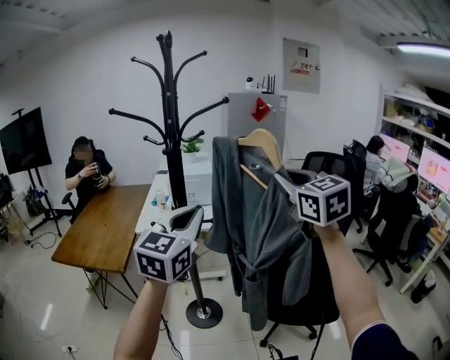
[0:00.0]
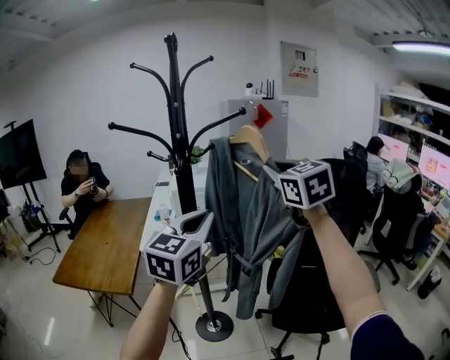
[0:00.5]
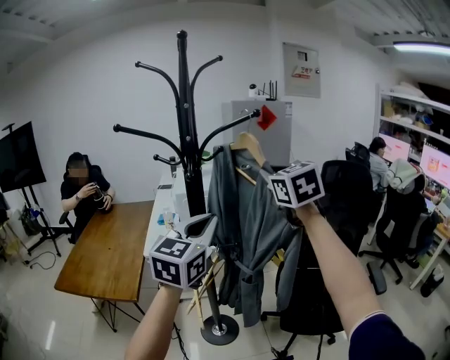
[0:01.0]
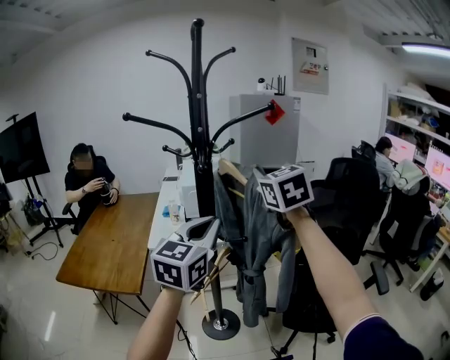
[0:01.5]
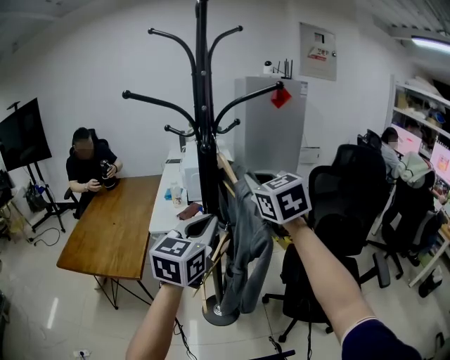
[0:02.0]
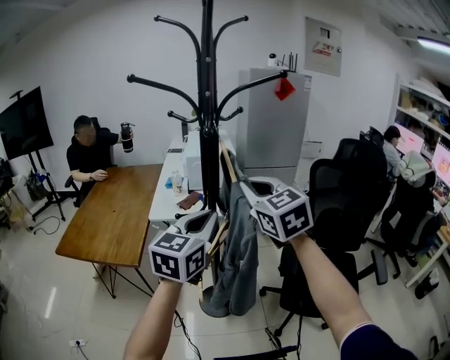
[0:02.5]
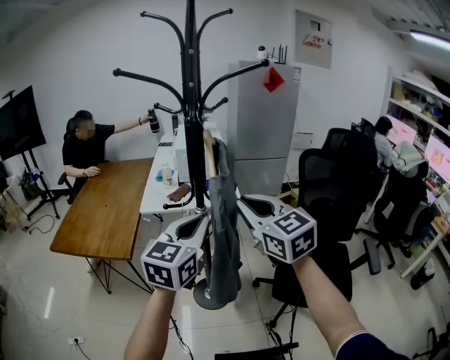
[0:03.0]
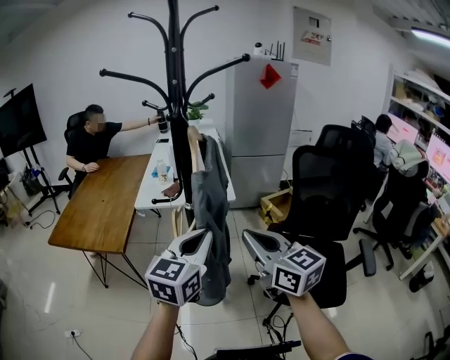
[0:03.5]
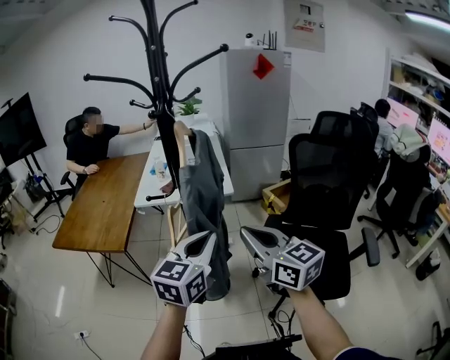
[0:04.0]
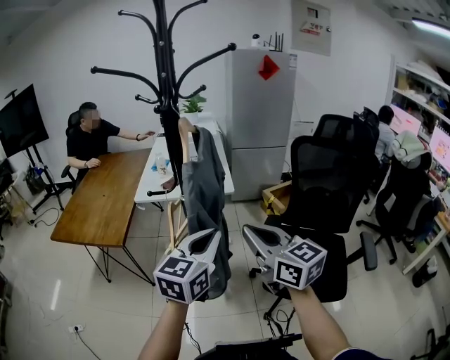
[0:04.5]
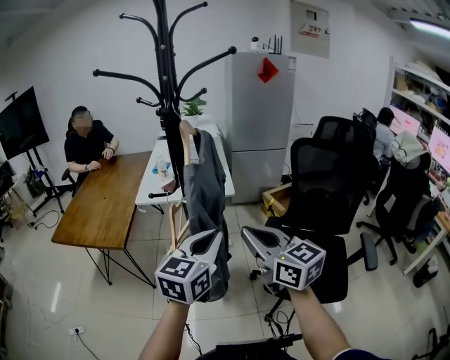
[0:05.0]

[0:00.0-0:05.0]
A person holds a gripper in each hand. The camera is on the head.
0:00.0 to 0:02.5: The right gripper heads to the left and downward, covering approximately 25 cm, while the left gripper travels to the left, downward and forward by approximately 15 cm.
0:02.5 to 0:05.0: The right gripper moves backward, downward and to the right, about 20 cm, and changes its angle by roughly 30 degrees, while the left gripper goes about 15 cm to the right, backward and downward.

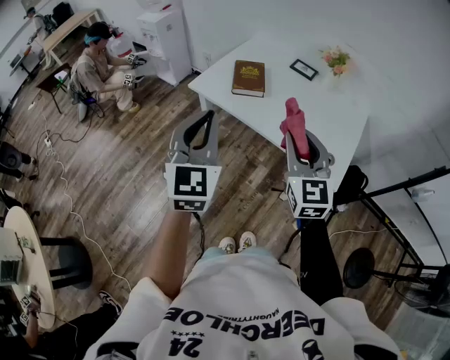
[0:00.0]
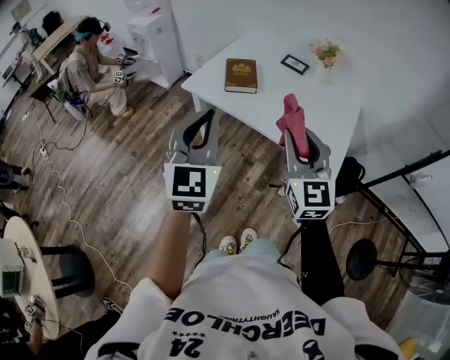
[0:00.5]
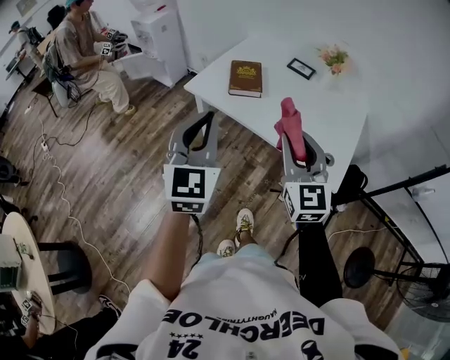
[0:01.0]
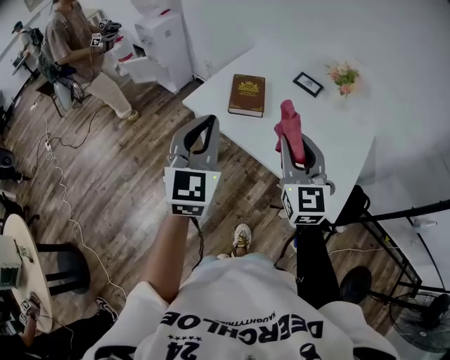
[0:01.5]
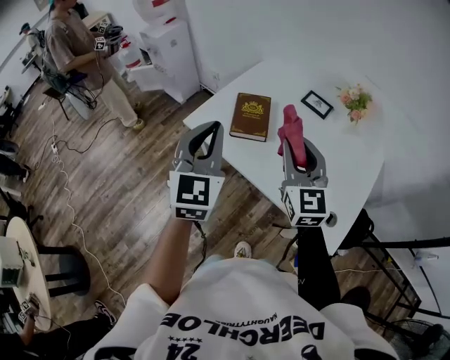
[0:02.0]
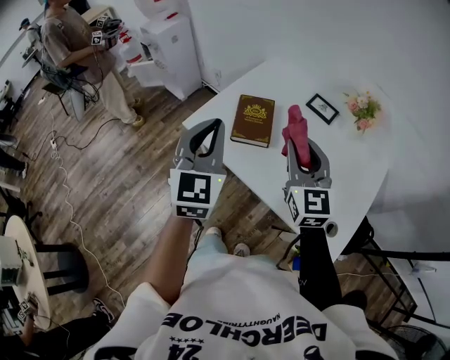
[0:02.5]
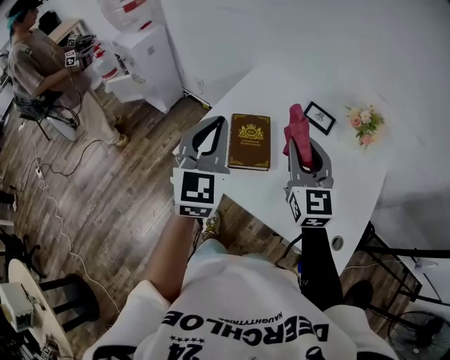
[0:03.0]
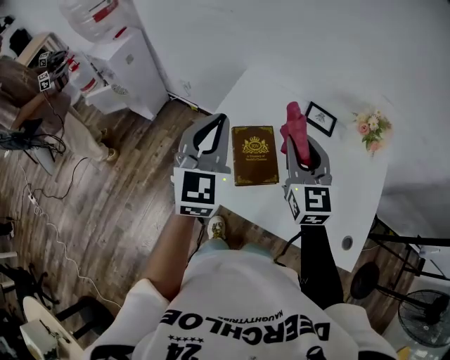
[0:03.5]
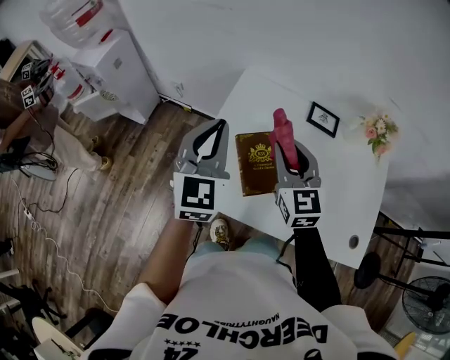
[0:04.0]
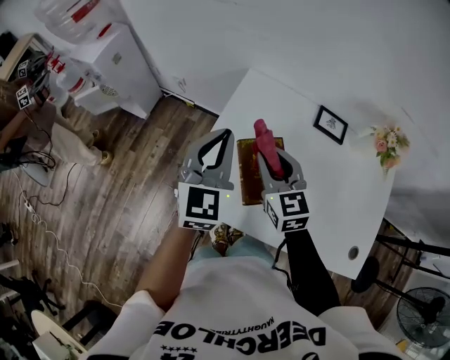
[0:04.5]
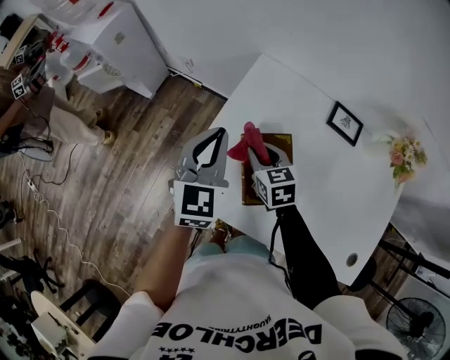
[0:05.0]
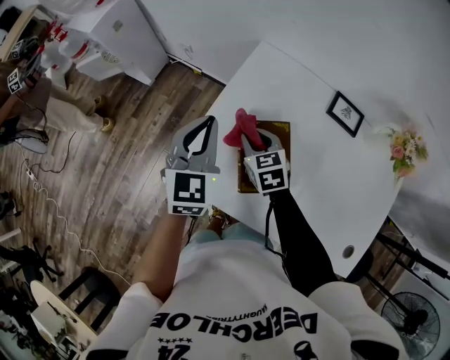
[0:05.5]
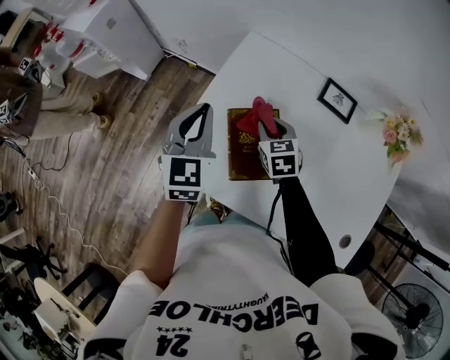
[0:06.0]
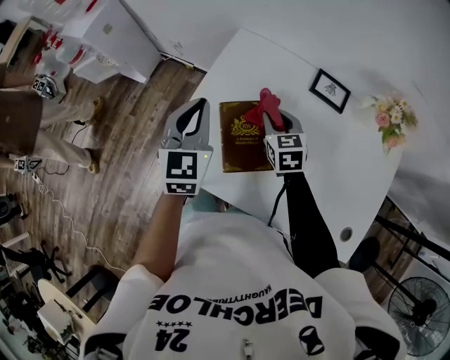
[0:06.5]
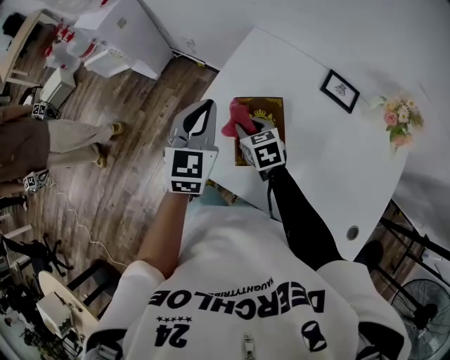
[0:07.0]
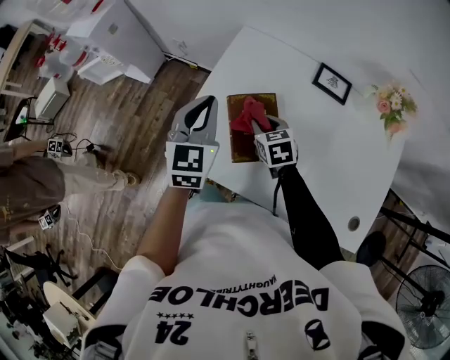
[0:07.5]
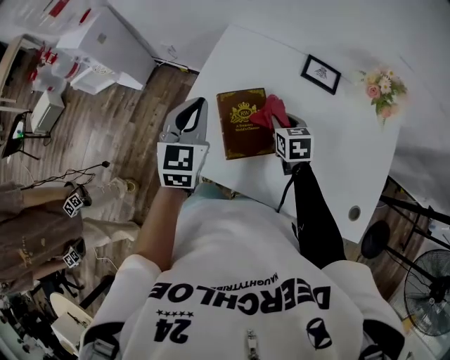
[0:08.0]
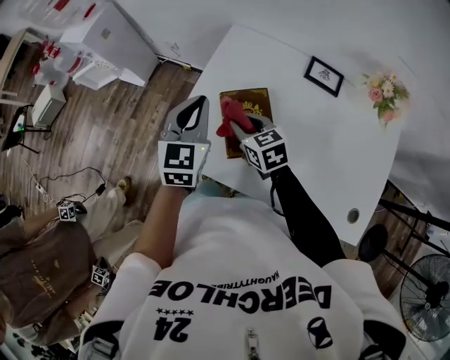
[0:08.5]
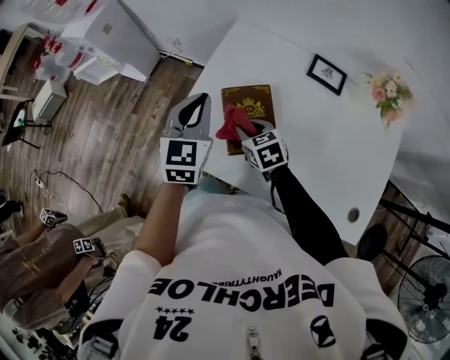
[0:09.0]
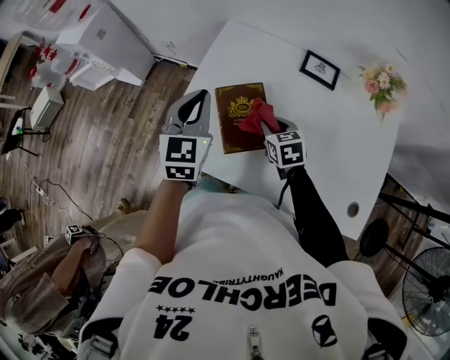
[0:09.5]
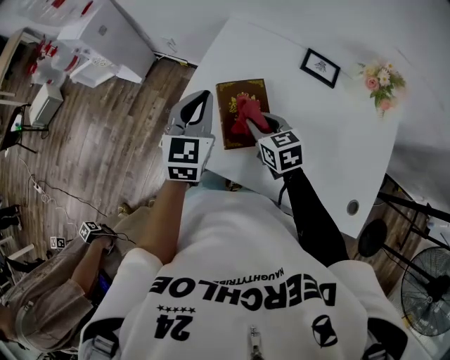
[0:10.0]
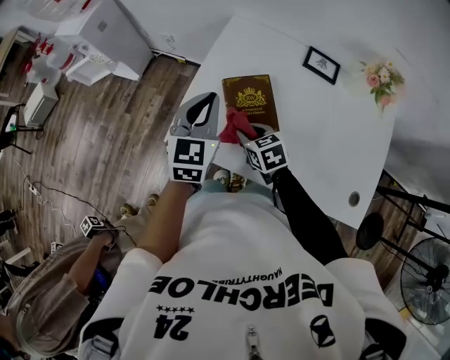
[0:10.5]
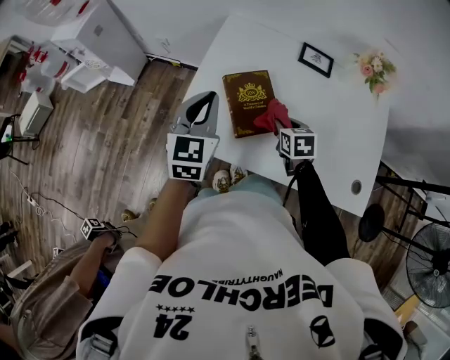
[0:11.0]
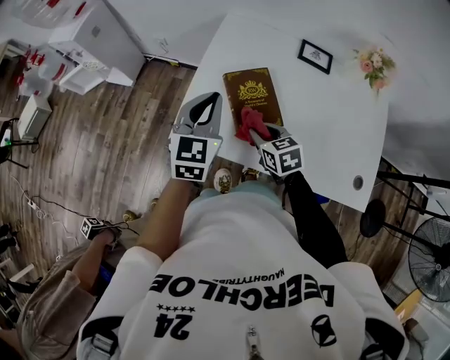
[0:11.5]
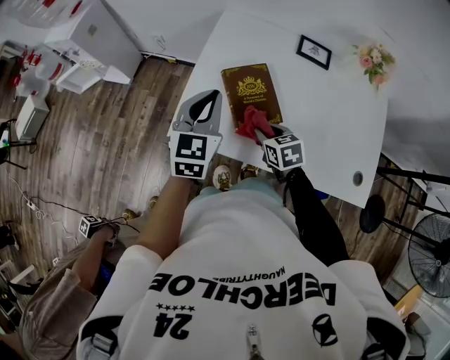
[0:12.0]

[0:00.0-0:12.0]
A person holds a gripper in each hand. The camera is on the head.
0:00.0 to 0:02.0: The grippers both shift forward by some 20 cm.
0:02.0 to 0:04.0: The left gripper is displaced forward by approximately 35 cm, and changes its angle by some 20 degrees. The right gripper travels forward and to the left by approximately 30 cm.
0:04.0 to 0:06.0: The right gripper shifts some 20 cm downward, and points its fingers approximately 30 degrees further downward, while the left gripper shifts approximately 10 cm downward.
0:06.0 to 0:08.0: The right gripper goes left and right, roughly 15 cm each way, reversing 2 times.
0:08.0 to 0:10.0: The right gripper moves left and right over approximately 15 cm, changing direction 2 times.
0:10.0 to 0:12.0: The right gripper goes left and right, roughly 10 cm each way, reversing 2 times, while the left gripper moves approximately 5 cm.

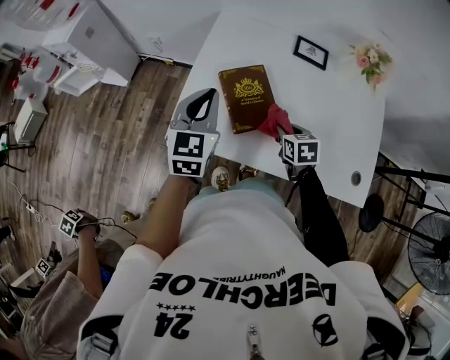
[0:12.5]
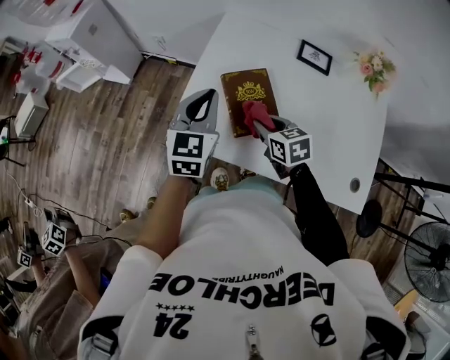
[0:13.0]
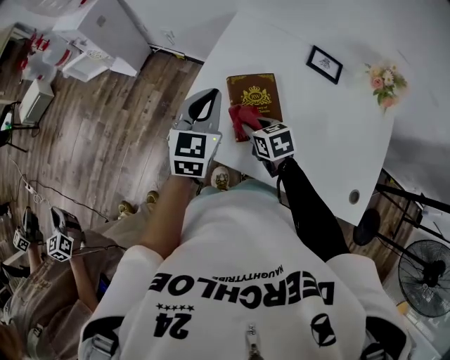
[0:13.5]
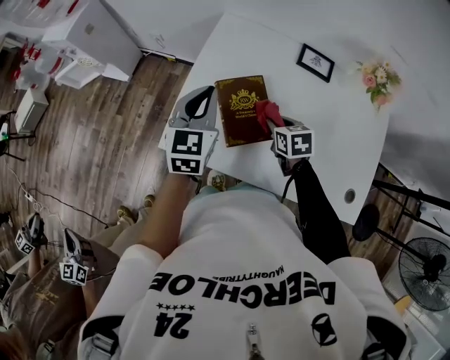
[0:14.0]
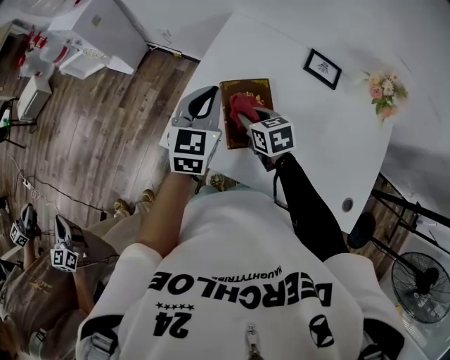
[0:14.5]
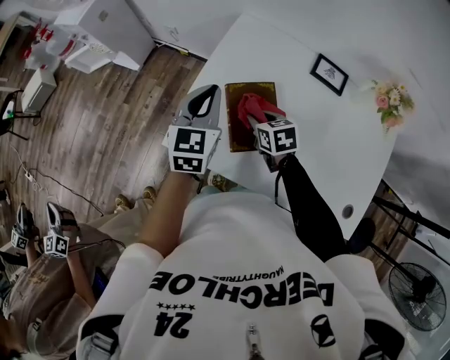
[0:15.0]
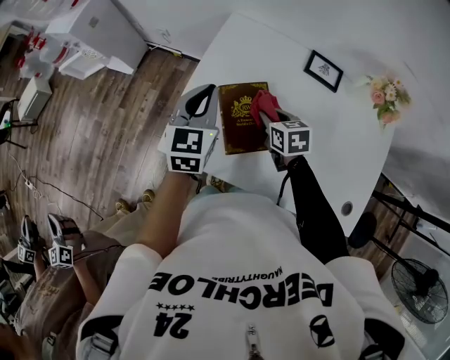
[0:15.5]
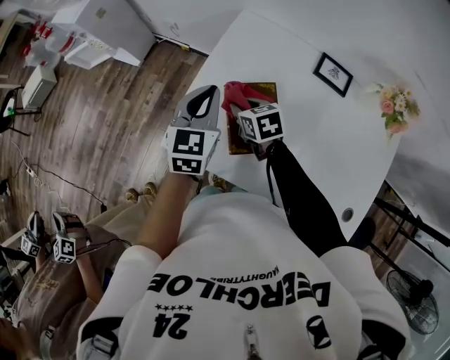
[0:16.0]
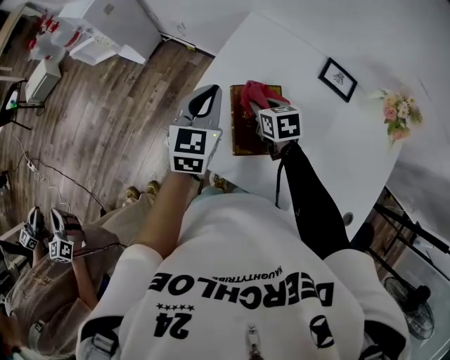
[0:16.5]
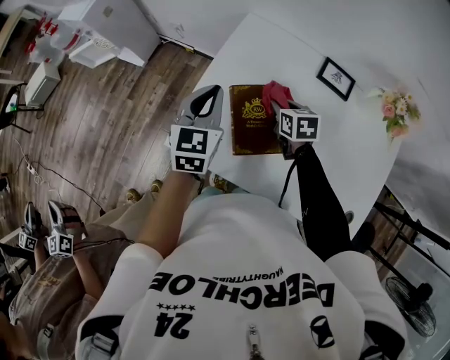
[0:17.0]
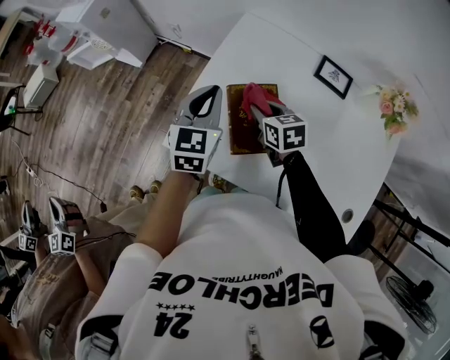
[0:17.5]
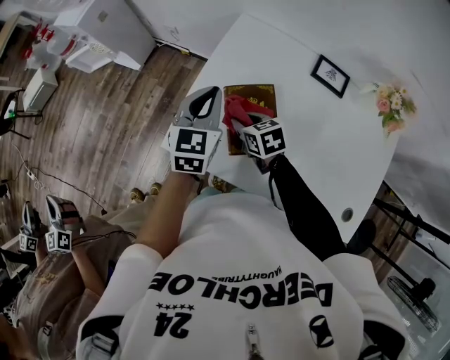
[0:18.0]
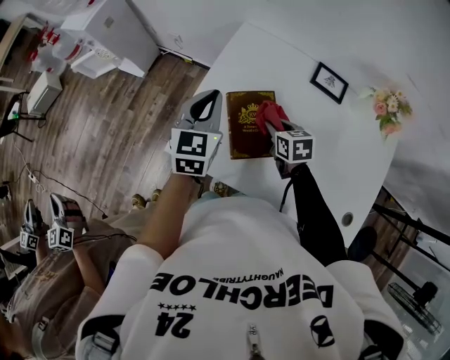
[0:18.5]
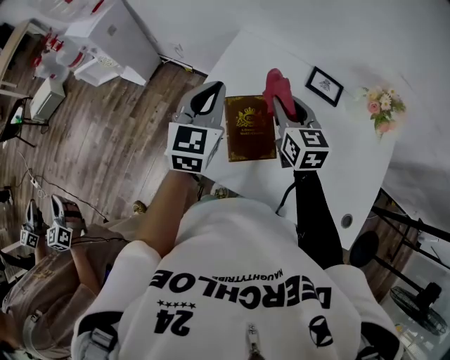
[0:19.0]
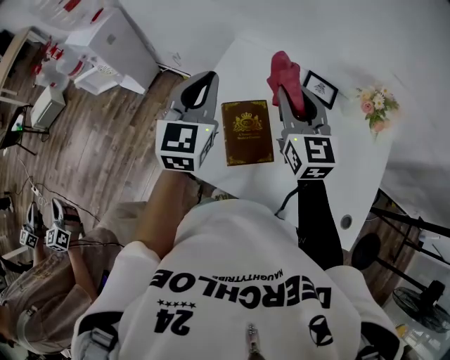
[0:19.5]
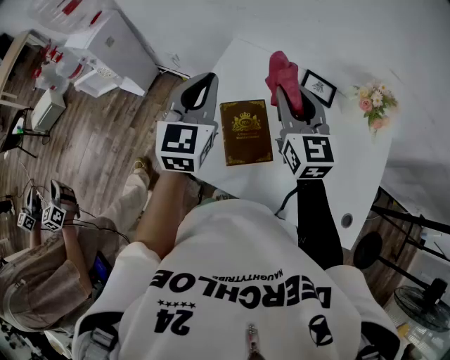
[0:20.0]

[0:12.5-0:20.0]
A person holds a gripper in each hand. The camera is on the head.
0:12.5 to 0:14.5: The left gripper is displaced forward by approximately 5 cm. Meanwhile the right gripper goes left and right, some 15 cm each way, reversing 2 times, and swivels some 20 degrees.
0:14.5 to 0:16.5: The right gripper swings left and right, some 10 cm each way, with 2 reversals.
0:16.5 to 0:18.0: The right gripper heads backward, covering some 5 cm.
0:18.0 to 0:20.0: The right gripper heads upward and to the right, covering about 30 cm, and tips its fingers upward by approximately 40 degrees. Meanwhile the left gripper heads upward, covering some 15 cm.

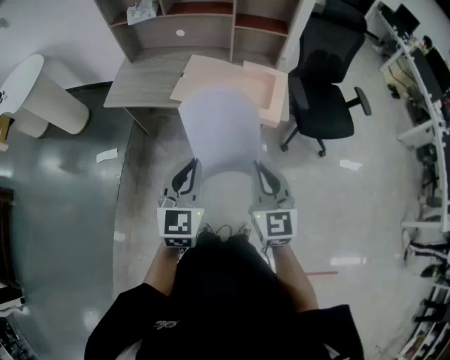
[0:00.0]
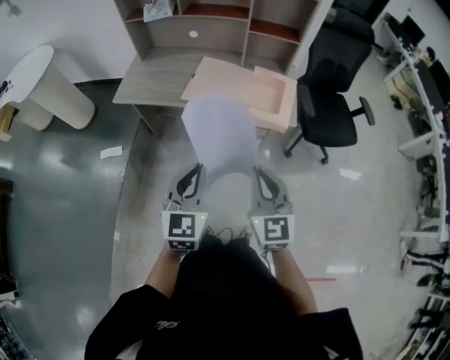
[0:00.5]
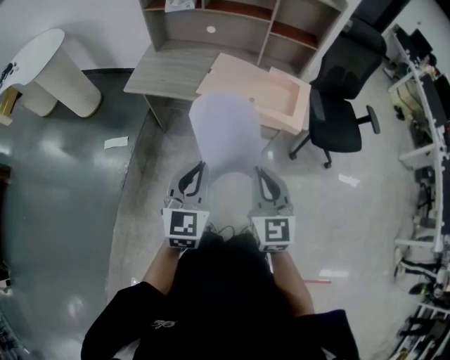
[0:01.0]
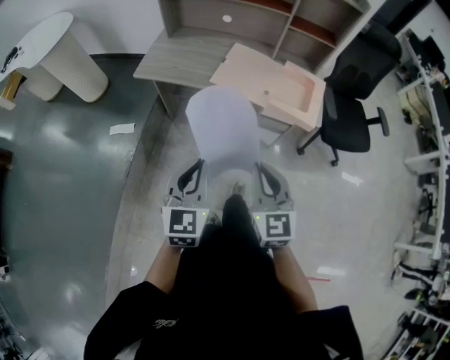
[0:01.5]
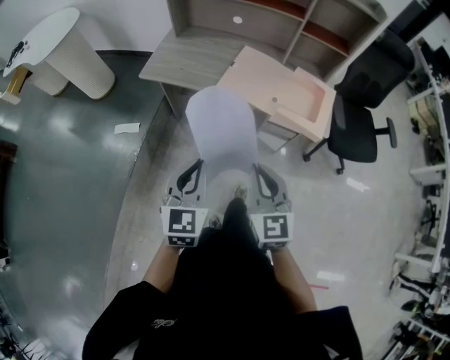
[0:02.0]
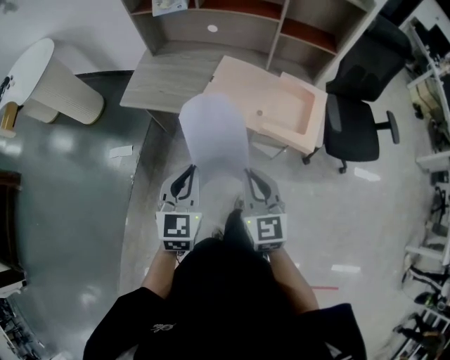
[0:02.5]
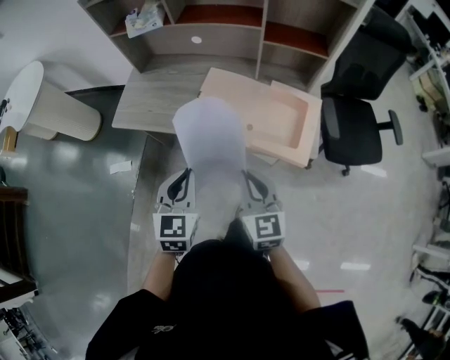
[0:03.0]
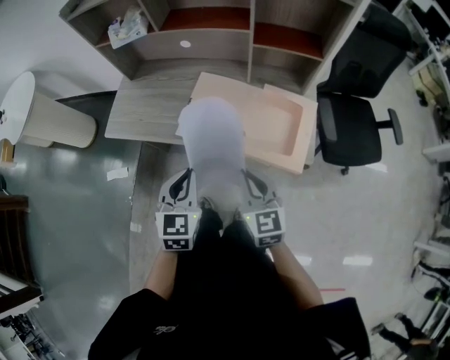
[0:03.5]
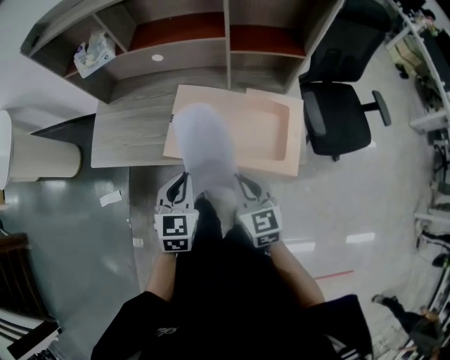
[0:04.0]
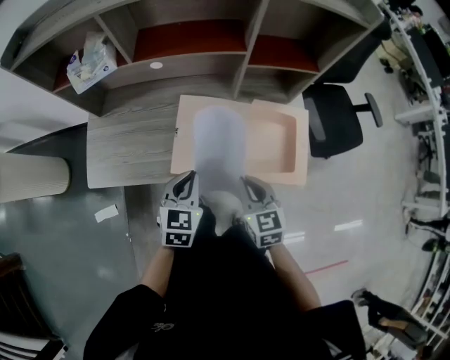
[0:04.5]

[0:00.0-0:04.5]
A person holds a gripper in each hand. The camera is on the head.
0:00.0 to 0:02.0: Both grippers move to the left, about 15 cm.
0:02.0 to 0:04.5: Both grippers move forward, some 35 cm. The right gripper changes its angle by roughly 30 degrees; the left gripper swivels roughly 30 degrees.
